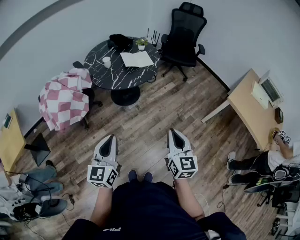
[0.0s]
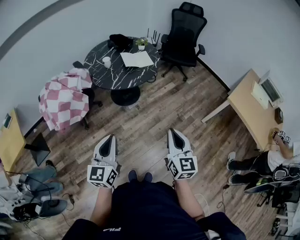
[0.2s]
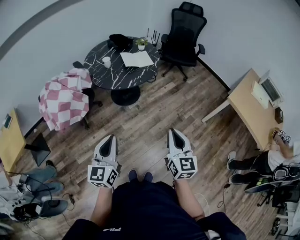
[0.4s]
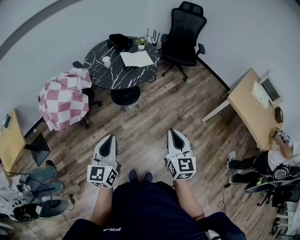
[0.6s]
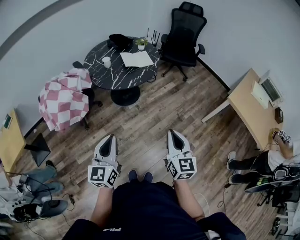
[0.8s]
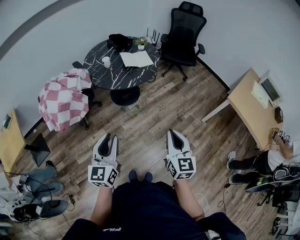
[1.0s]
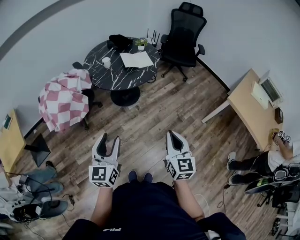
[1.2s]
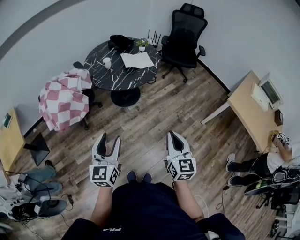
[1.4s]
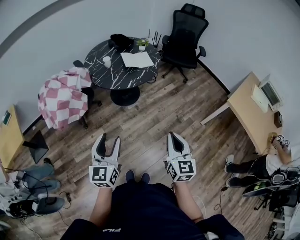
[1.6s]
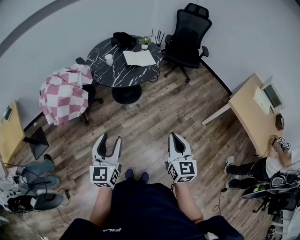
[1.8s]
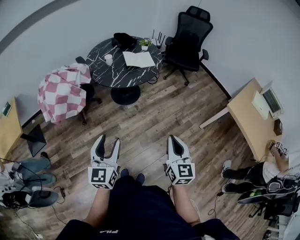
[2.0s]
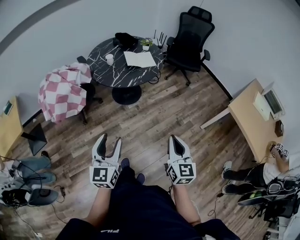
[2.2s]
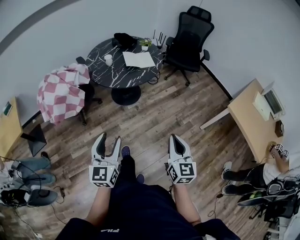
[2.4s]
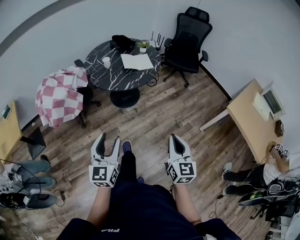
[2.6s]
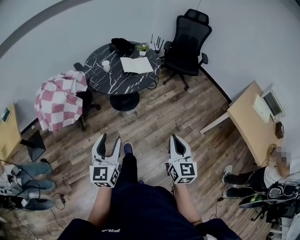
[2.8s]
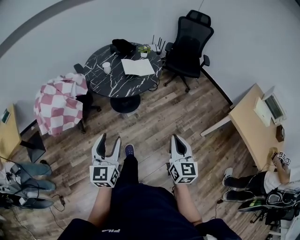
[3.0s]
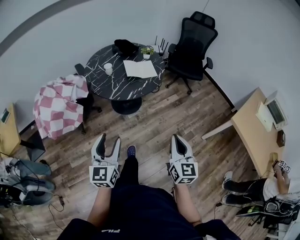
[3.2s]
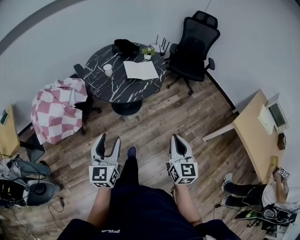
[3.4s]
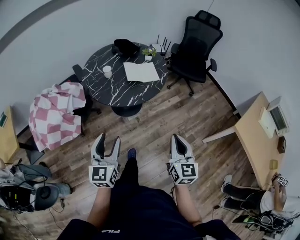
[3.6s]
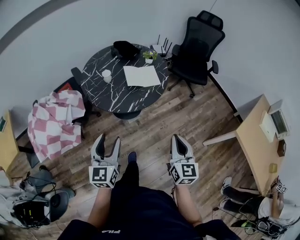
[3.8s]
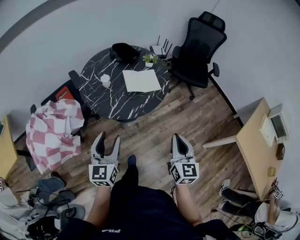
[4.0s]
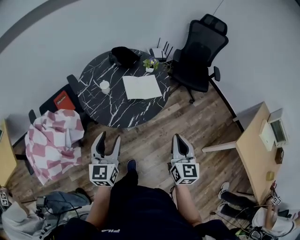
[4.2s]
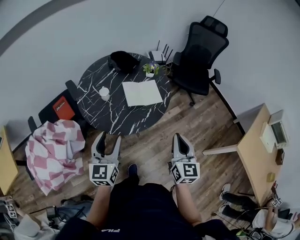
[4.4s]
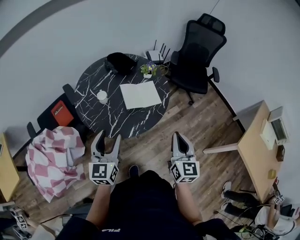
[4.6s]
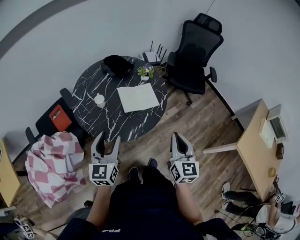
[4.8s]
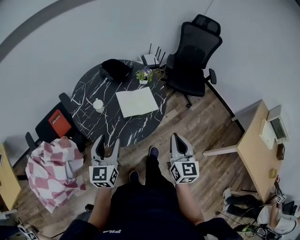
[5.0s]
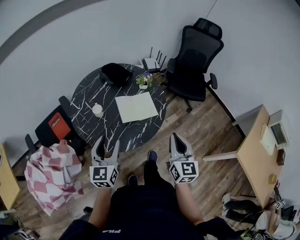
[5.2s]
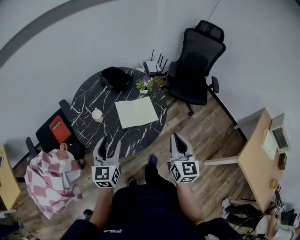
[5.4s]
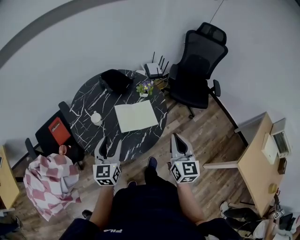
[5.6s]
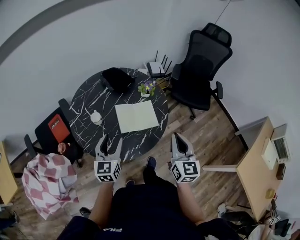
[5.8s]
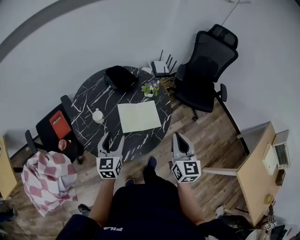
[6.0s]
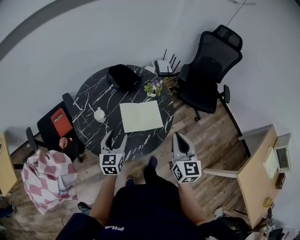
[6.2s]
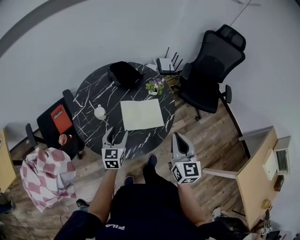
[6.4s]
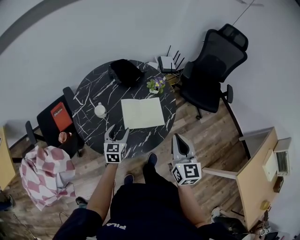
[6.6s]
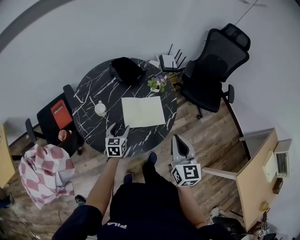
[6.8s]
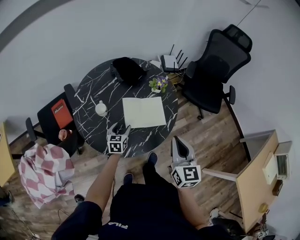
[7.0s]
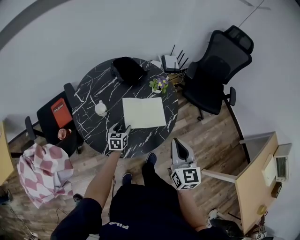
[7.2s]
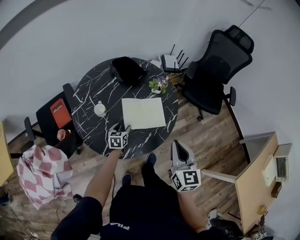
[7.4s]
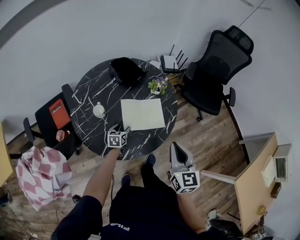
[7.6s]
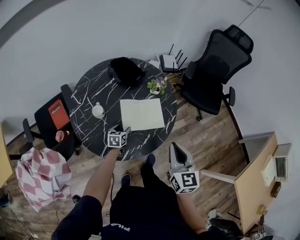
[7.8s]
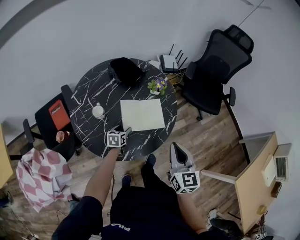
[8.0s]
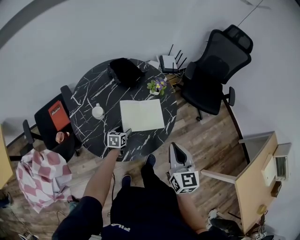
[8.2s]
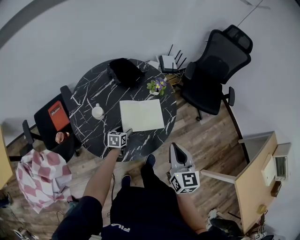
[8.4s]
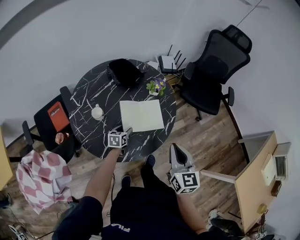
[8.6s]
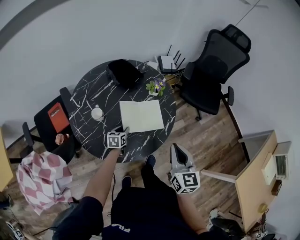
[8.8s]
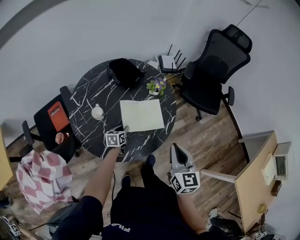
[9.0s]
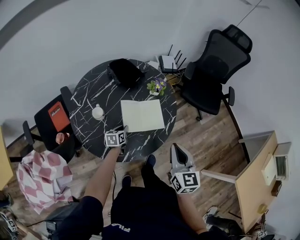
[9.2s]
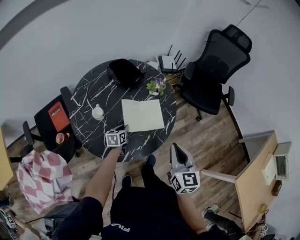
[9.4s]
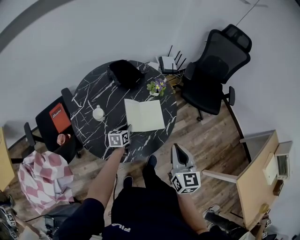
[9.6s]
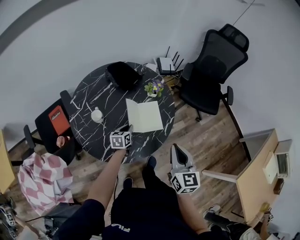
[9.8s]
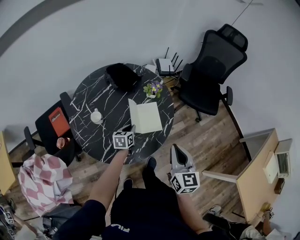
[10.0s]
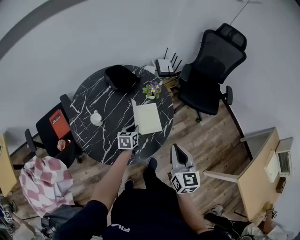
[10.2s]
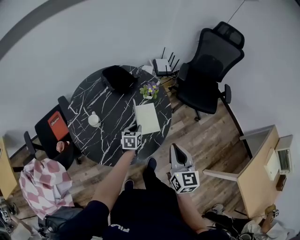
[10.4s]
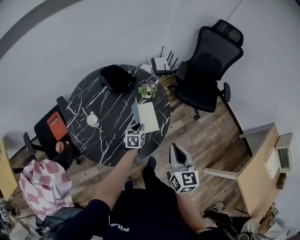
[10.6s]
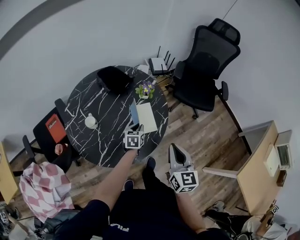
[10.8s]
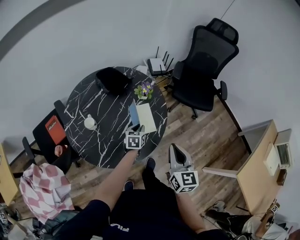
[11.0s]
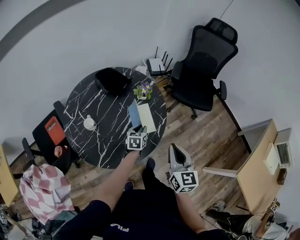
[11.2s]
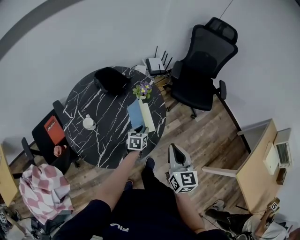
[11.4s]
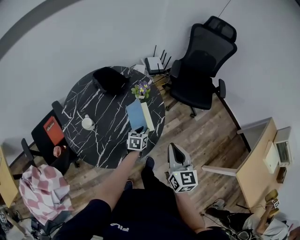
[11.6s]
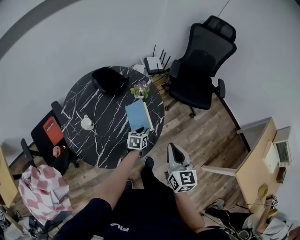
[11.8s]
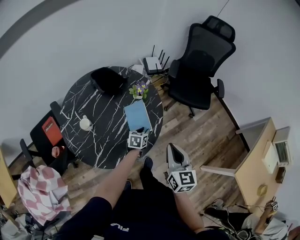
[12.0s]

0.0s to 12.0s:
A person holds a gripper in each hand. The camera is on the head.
0.0s to 1.6s: The left gripper opens its fingers.
1.6s to 3.0s: The right gripper travels forward and to the right by roughly 10 cm. Meanwhile the left gripper shifts about 5 cm forward.
3.0s to 4.4s: The grippers both shift forward by approximately 35 cm.
4.4s to 6.0s: The right gripper travels forward by roughly 20 cm, while the left gripper heads forward and downward, covering roughly 25 cm.
6.0s to 7.6s: The left gripper shifts some 25 cm downward, and swivels approximately 30 degrees.
7.6s to 9.0s: The left gripper closes its fingers.
9.0s to 10.4s: The left gripper goes some 15 cm to the right and upward.
10.4s to 12.0s: The left gripper travels to the right by approximately 10 cm.

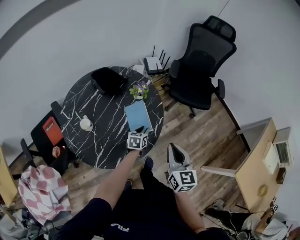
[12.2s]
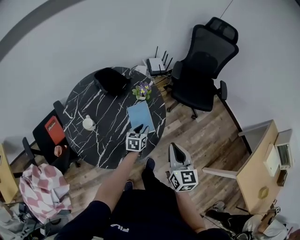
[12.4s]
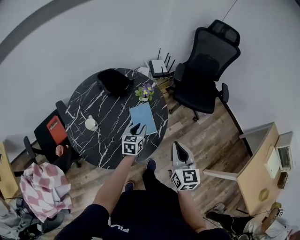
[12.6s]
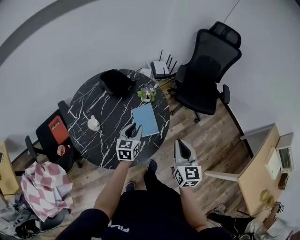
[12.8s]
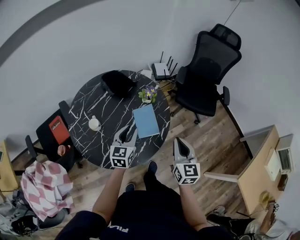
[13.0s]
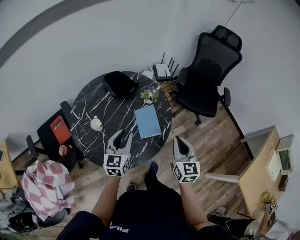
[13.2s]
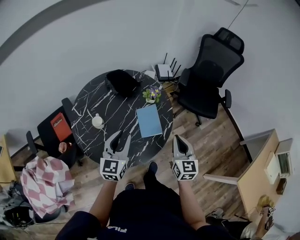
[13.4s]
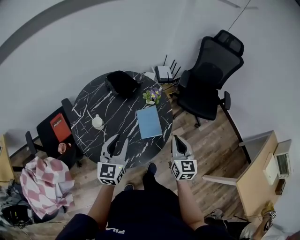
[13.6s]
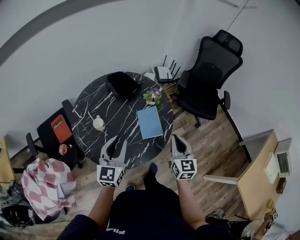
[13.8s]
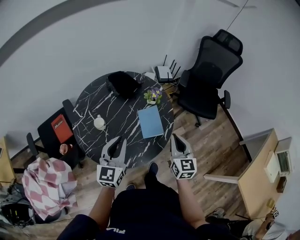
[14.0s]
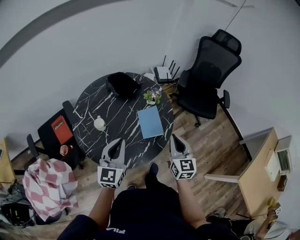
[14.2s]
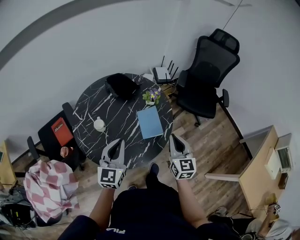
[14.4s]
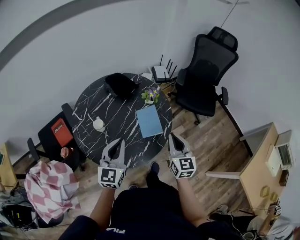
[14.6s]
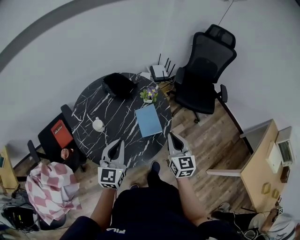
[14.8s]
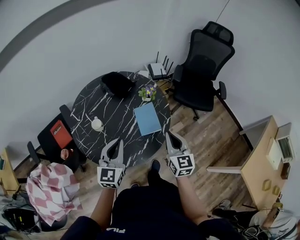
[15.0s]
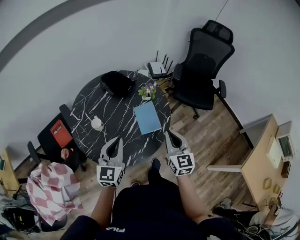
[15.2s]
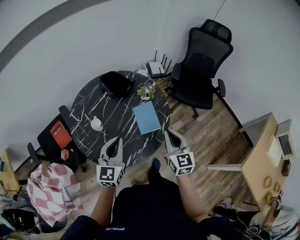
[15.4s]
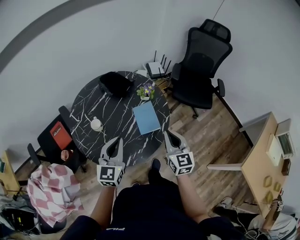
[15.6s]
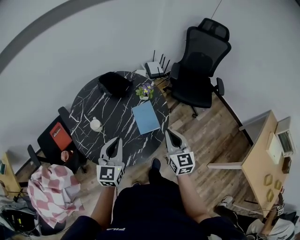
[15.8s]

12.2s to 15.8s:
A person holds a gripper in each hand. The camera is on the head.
12.2s to 14.0s: The left gripper is displaced upward, to the left and backward by some 35 cm, and angles its fingers upward, by about 30 degrees. Meanwhile the right gripper shifts some 5 cm to the left.
14.0s to 15.8s: The grippers move only a little.

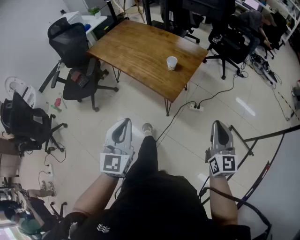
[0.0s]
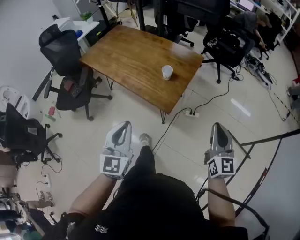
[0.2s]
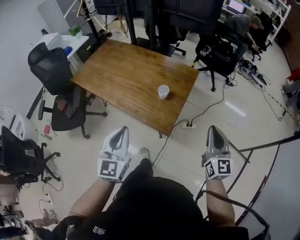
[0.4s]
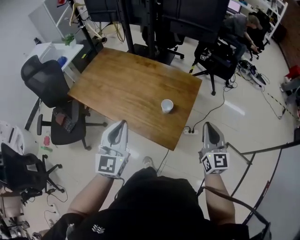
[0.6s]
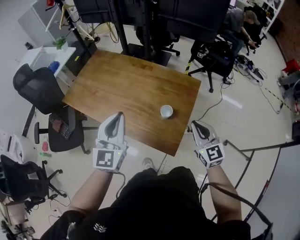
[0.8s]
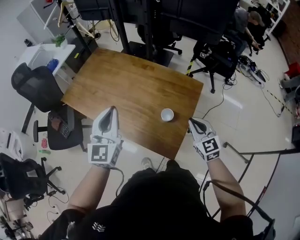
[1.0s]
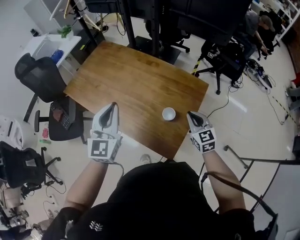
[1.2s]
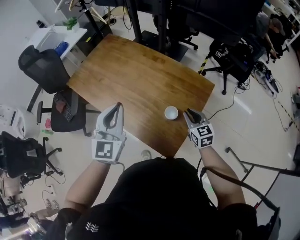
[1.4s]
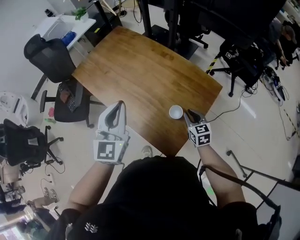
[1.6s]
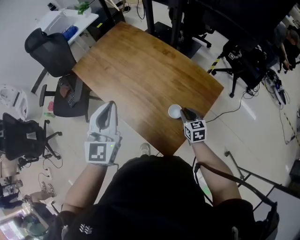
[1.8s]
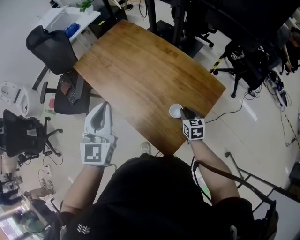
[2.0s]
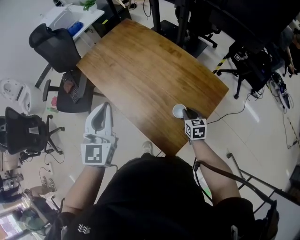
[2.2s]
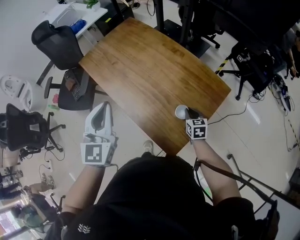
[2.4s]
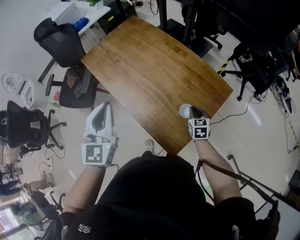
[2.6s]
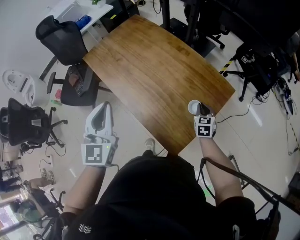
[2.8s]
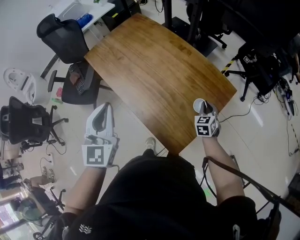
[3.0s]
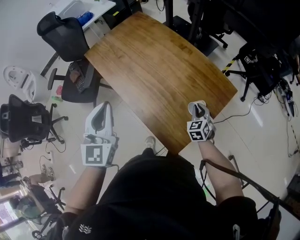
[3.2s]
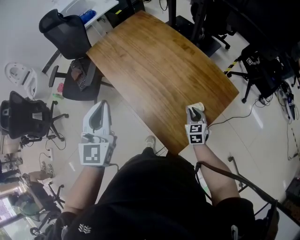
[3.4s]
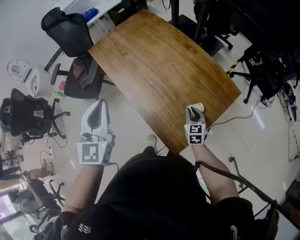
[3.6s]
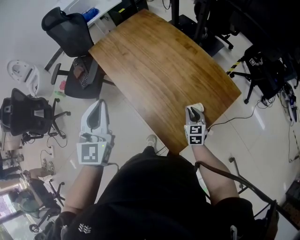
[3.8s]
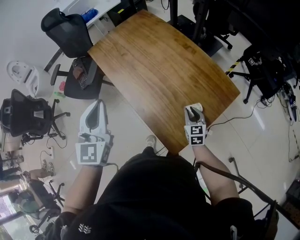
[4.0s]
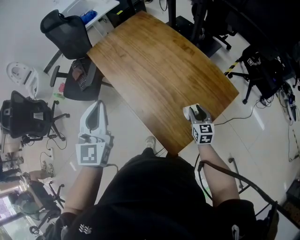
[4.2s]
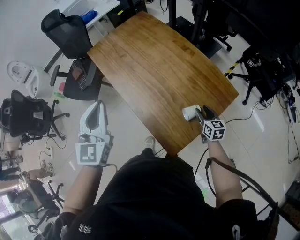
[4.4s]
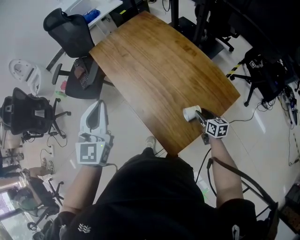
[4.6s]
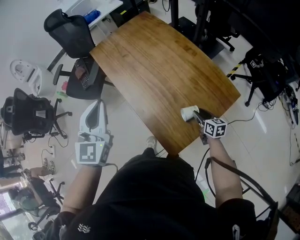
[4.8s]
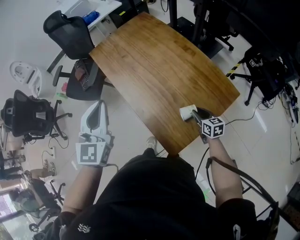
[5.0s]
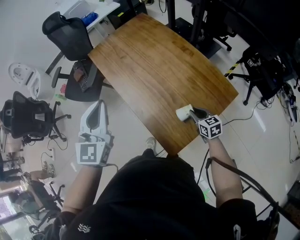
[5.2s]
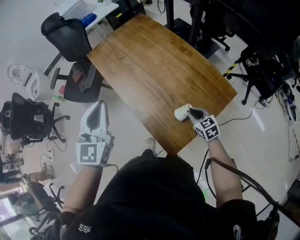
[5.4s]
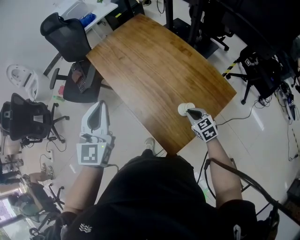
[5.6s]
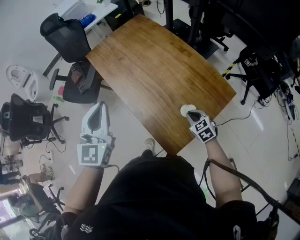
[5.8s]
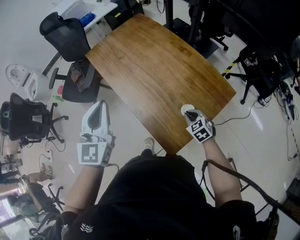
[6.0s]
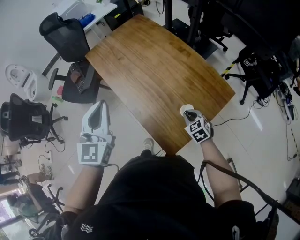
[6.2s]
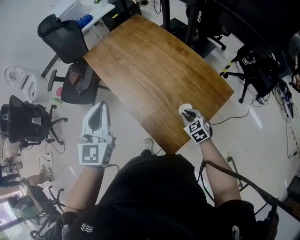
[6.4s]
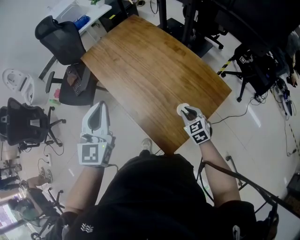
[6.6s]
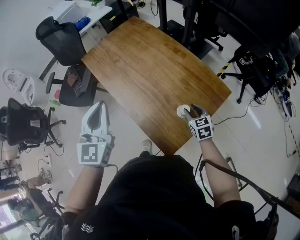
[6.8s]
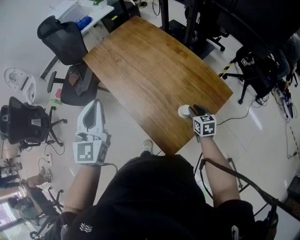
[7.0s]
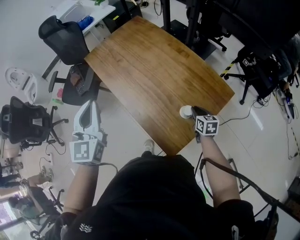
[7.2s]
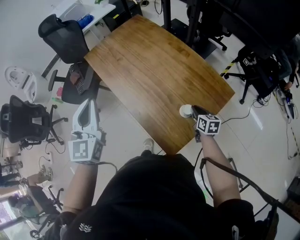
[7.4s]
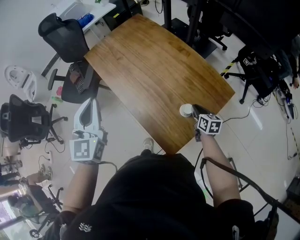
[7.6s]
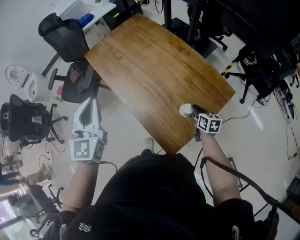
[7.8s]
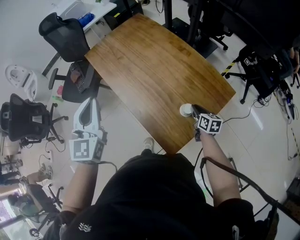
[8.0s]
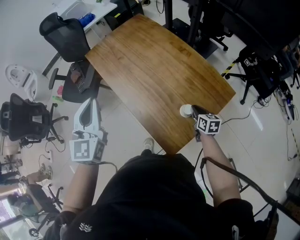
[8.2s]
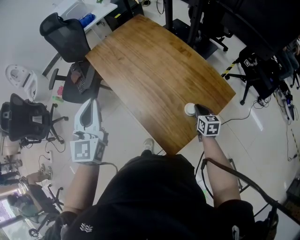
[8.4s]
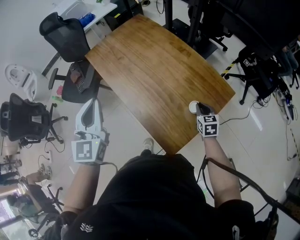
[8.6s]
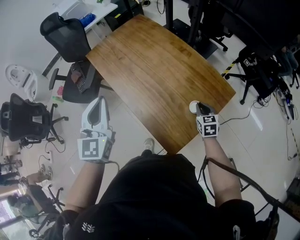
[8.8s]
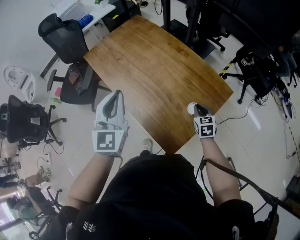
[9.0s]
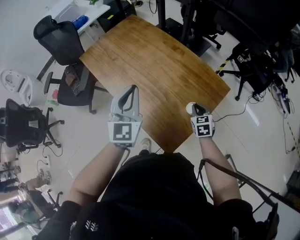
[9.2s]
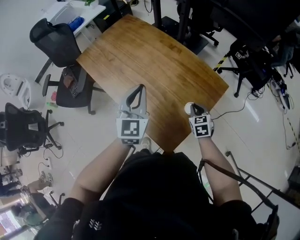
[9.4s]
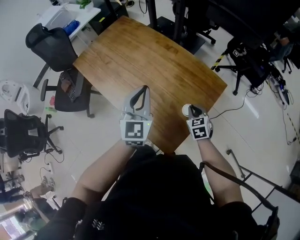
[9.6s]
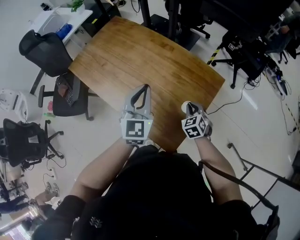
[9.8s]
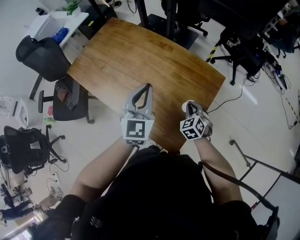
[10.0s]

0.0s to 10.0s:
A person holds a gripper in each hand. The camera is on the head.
0.0s to 1.4s: The right gripper moves forward and downward, approximately 40 cm, and turns by about 30 degrees. Meanwhile the left gripper shifts some 35 cm forward.
1.4s to 2.8s: The right gripper heads downward, covering approximately 10 cm; the left gripper goes about 10 cm to the left.
2.8s to 4.2s: The right gripper opens up.
4.2s to 5.8s: The right gripper turns by approximately 30 degrees, and closes.
5.8s to 7.2s: The right gripper moves to the right, some 5 cm, swivels some 40 degrees, and opens, then closes once more.
7.2s to 8.6s: The grippers stay close to where they were, moving slightly.
8.6s to 10.0s: The left gripper heads to the right, downward and forward, covering about 25 cm, and rotates about 30 degrees. Meanwhile the right gripper swivels approximately 30 degrees.
